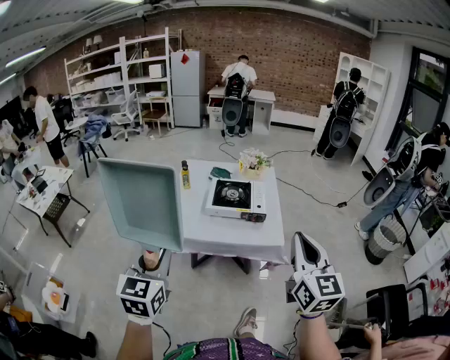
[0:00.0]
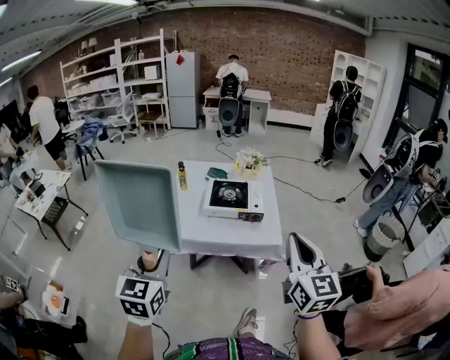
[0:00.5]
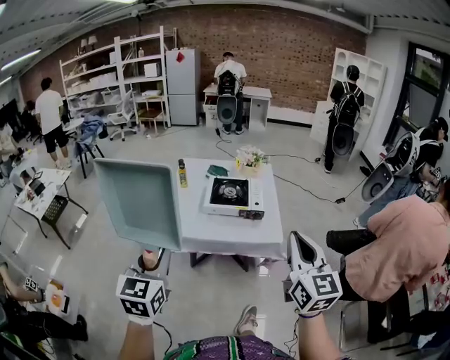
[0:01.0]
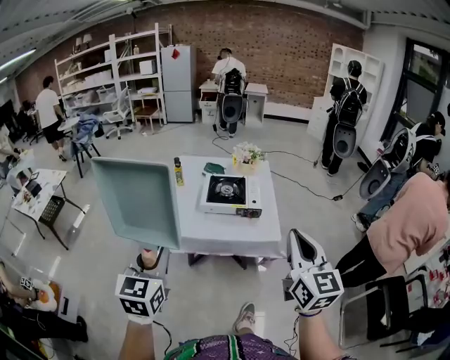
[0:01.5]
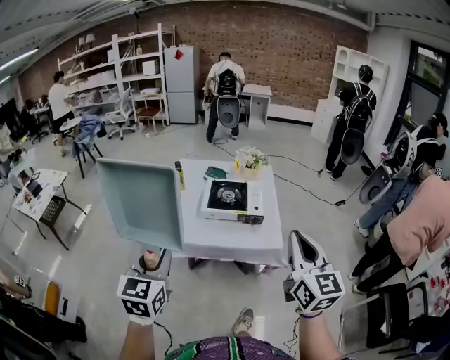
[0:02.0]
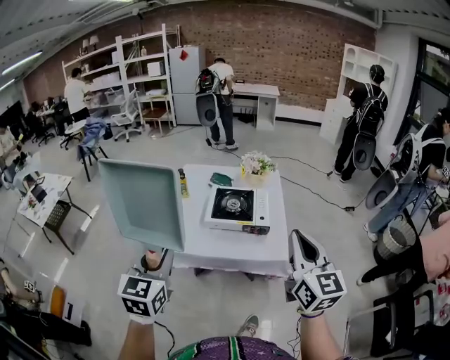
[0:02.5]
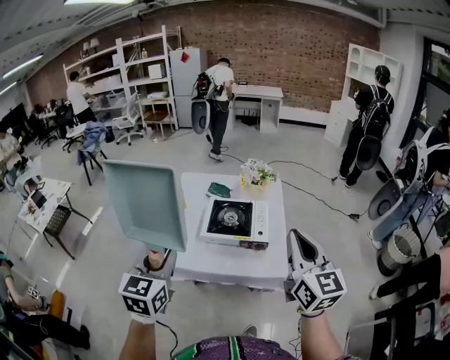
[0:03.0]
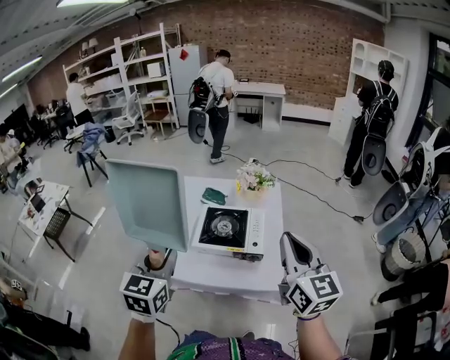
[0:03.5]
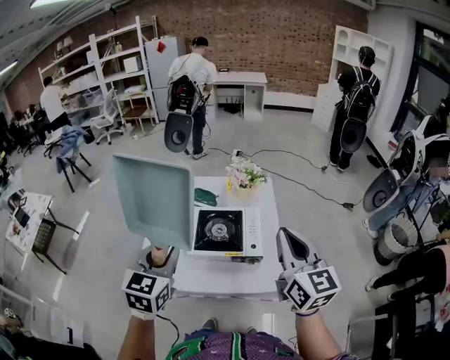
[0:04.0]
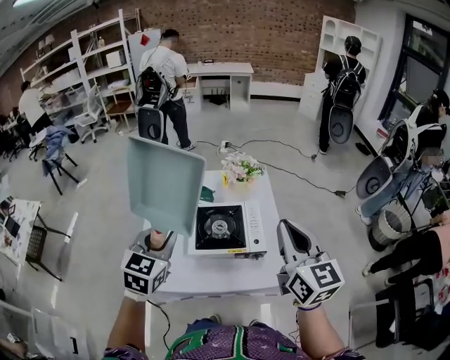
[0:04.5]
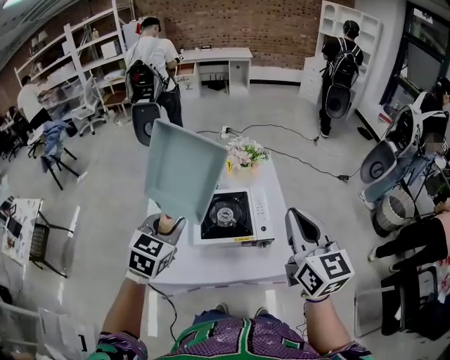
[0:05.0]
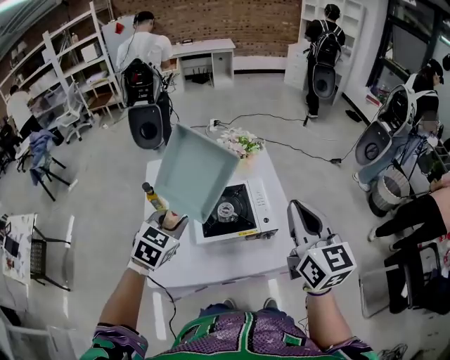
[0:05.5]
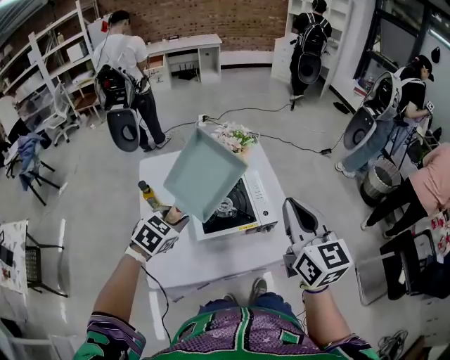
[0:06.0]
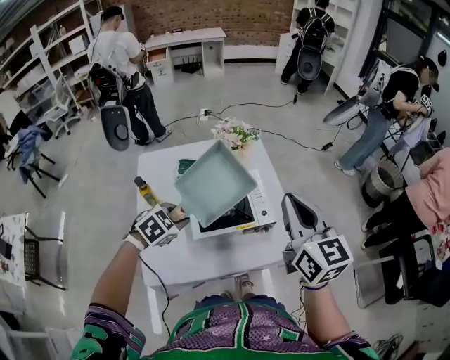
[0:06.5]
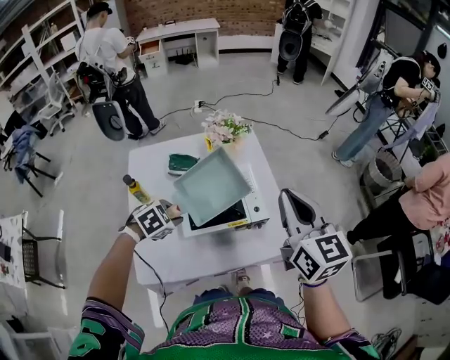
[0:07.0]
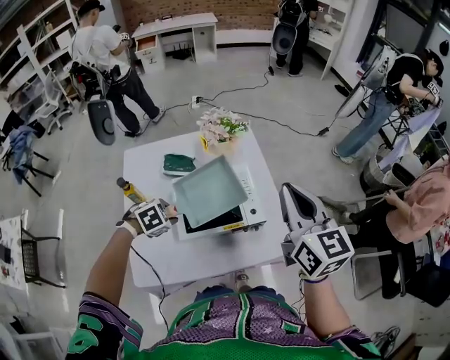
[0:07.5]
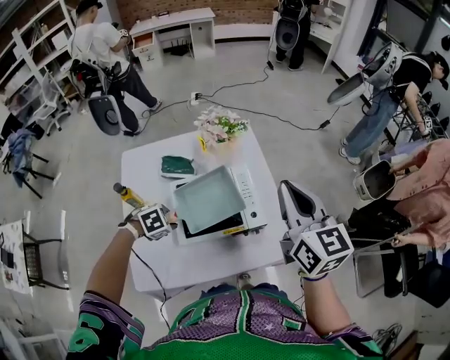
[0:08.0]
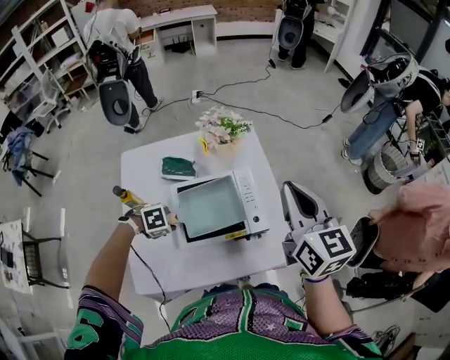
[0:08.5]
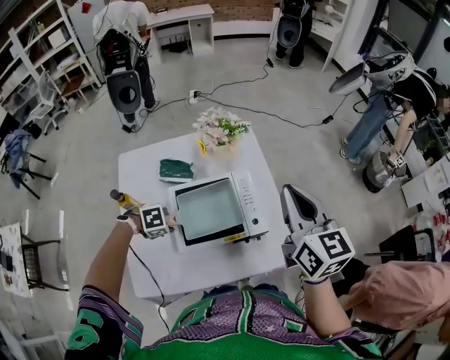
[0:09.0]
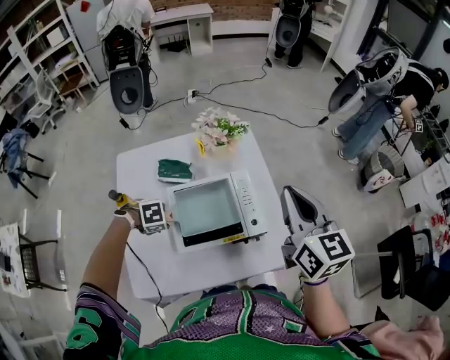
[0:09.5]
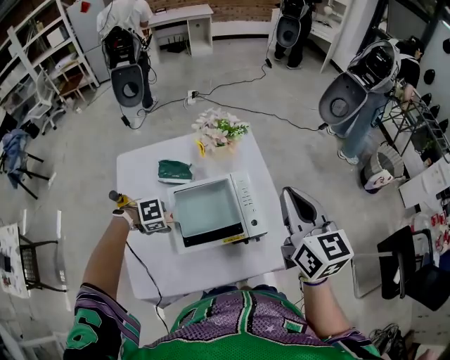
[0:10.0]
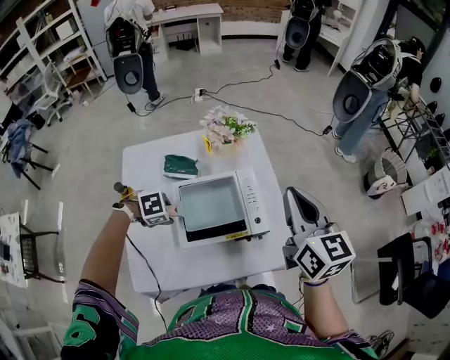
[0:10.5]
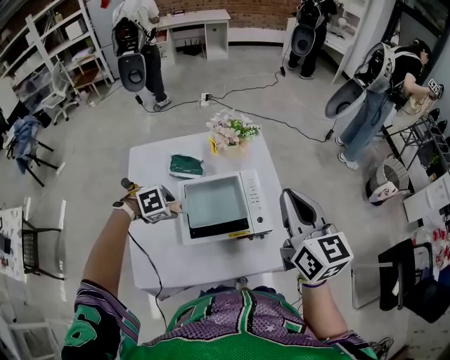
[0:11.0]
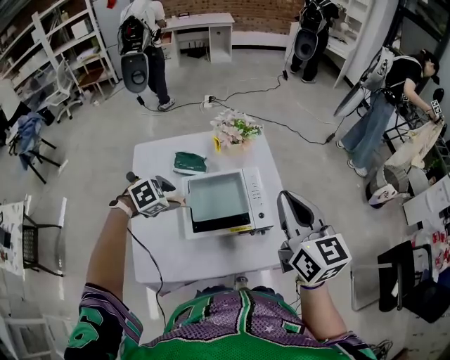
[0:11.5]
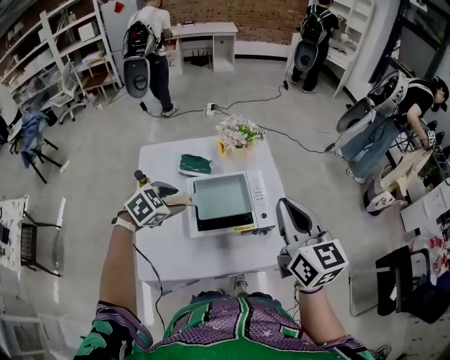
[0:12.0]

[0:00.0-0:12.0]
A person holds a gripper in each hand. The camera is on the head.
0:00.0 to 0:02.0: The left gripper shifts by some 5 cm.
0:02.0 to 0:04.0: Both grippers travel together forward, roughly 30 cm.
0:04.0 to 0:06.0: The left gripper goes about 15 cm downward, and swivels roughly 50 degrees; the right gripper moves about 10 cm.
0:06.0 to 0:08.0: The left gripper shifts roughly 15 cm downward, and angles its fingers downward, by roughly 30 degrees. Meanwhile the right gripper changes place by roughly 10 cm.
0:08.0 to 0:10.0: The left gripper opens its fingers.
0:10.0 to 0:12.0: The right gripper moves some 10 cm, while the left gripper heads upward, covering about 15 cm, and turns by some 40 degrees.

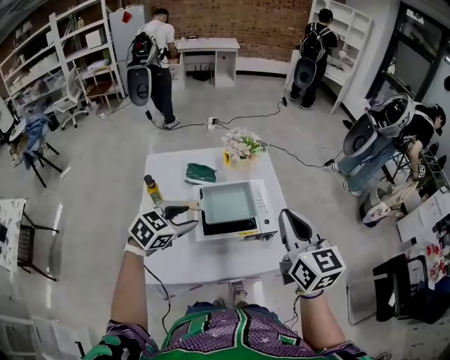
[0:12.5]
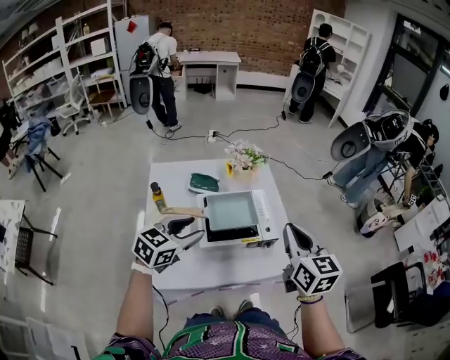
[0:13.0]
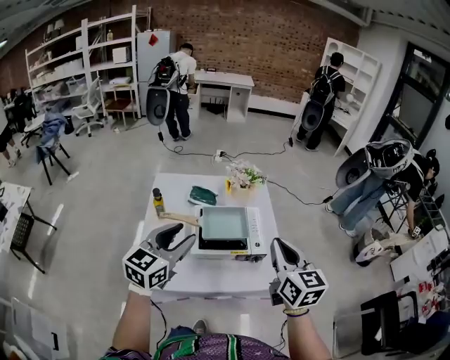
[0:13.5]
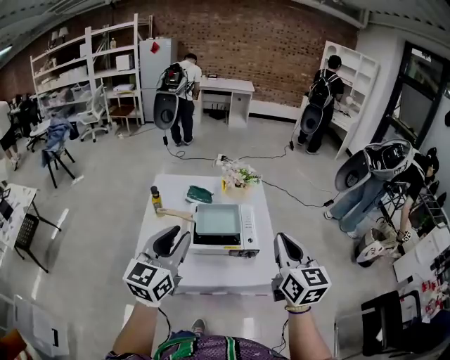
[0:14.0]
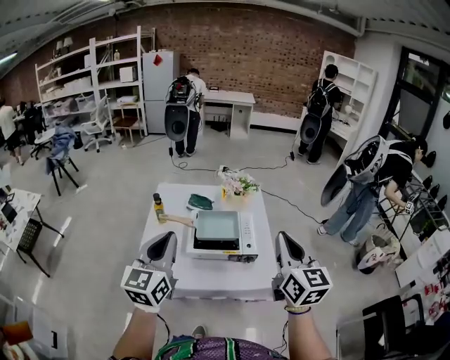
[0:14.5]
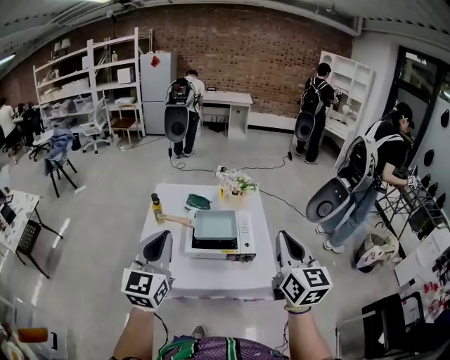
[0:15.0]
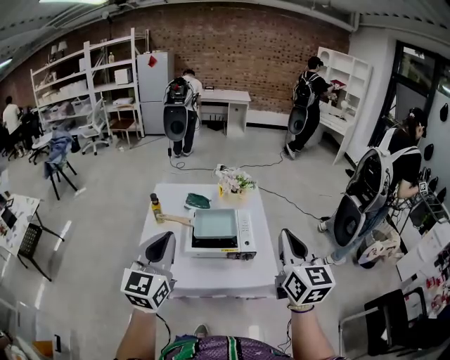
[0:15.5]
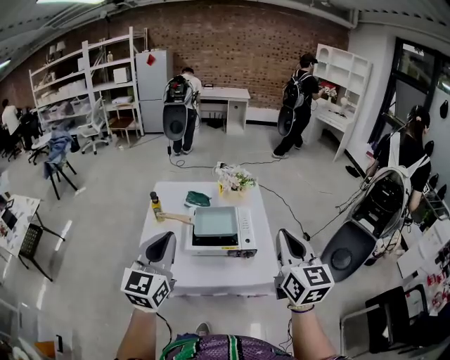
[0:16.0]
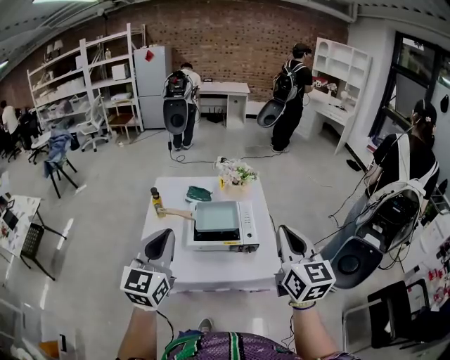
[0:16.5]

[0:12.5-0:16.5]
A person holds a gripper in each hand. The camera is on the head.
0:12.5 to 0:14.5: The right gripper goes roughly 15 cm to the right, backward and upward; the left gripper moves upward and backward, some 25 cm, points its fingers about 40 degrees further upward, and closes up.
0:14.5 to 0:16.5: The grippers stay close to where they were, moving slightly.

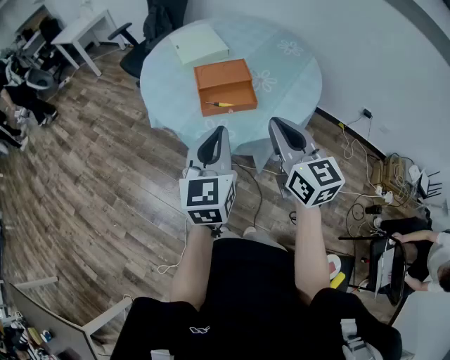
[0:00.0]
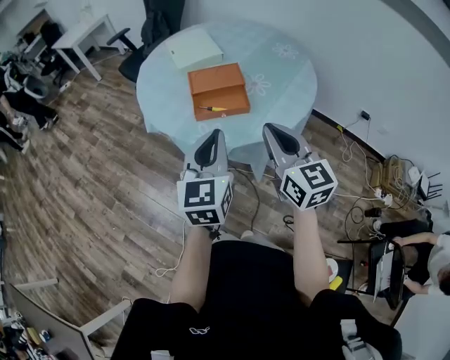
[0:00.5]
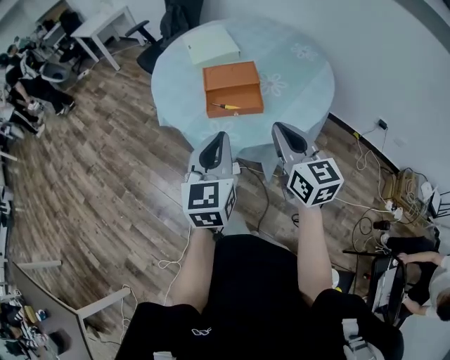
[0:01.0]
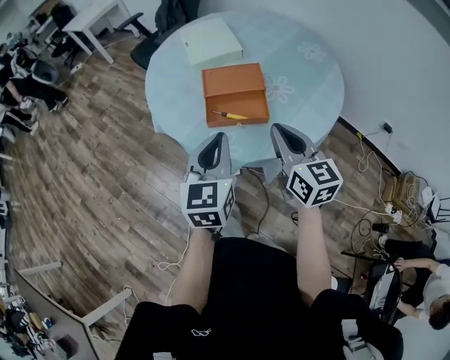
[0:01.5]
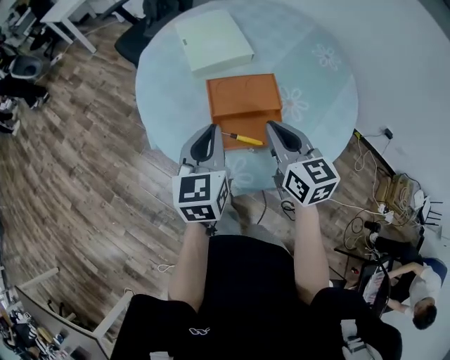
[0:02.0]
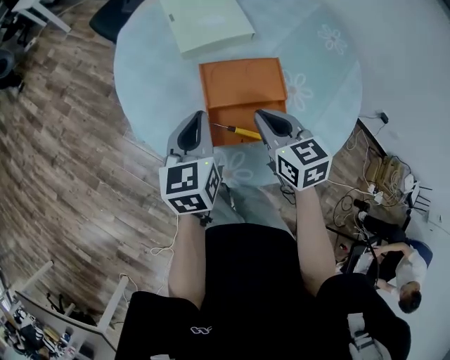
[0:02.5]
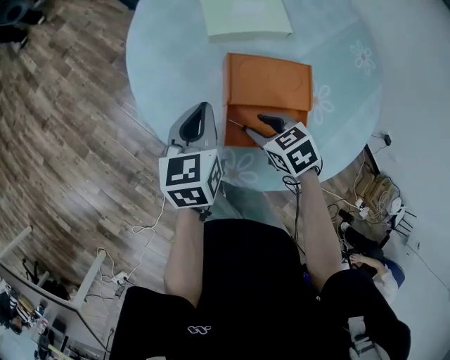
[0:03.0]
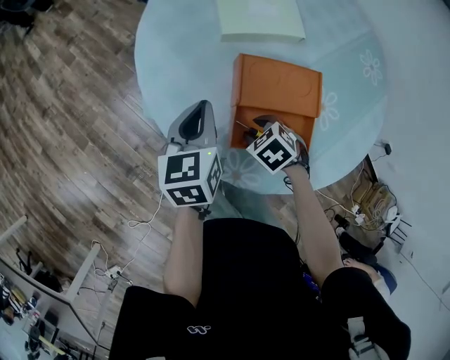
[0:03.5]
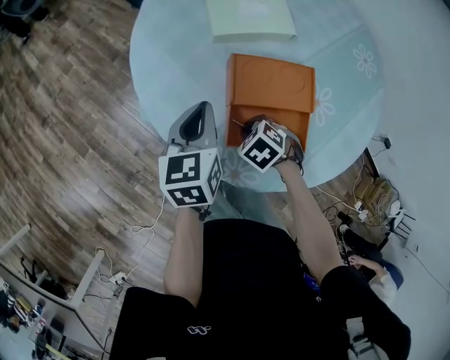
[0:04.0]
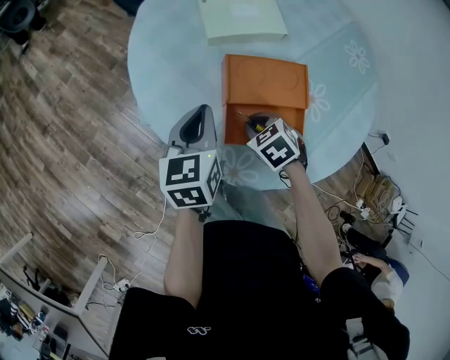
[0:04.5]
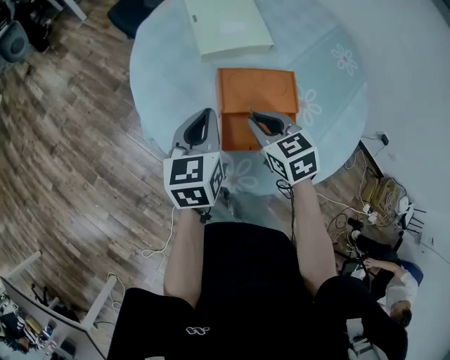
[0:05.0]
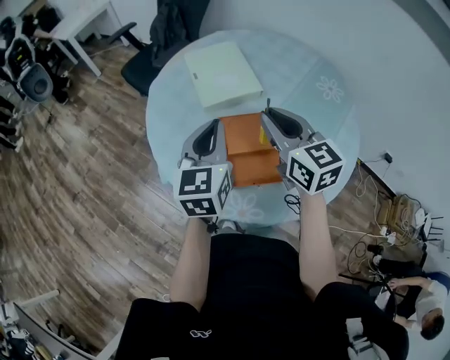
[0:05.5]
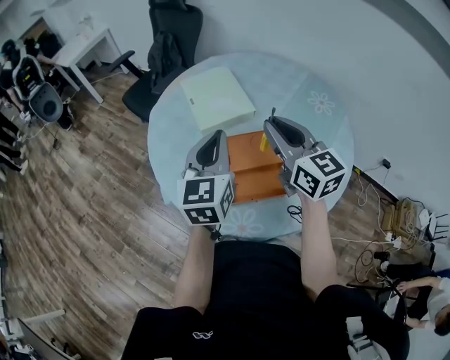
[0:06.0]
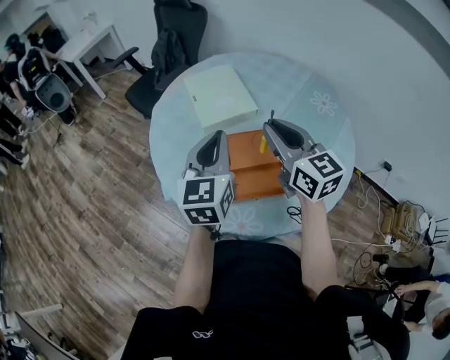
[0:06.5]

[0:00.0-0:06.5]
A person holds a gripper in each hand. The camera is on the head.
0:00.0 to 0:02.0: Both grippers travel together forward, approximately 25 cm.
0:02.0 to 0:04.5: The right gripper shifts about 20 cm downward, angles its fingers downward, by some 50 degrees, and opens and closes again. The left gripper shifts by roughly 15 cm.
0:04.5 to 0:06.5: The left gripper shifts roughly 20 cm upward and to the right, and changes its angle by some 30 degrees. Meanwhile the right gripper travels upward by some 35 cm, and points its fingers roughly 60 degrees further upward.

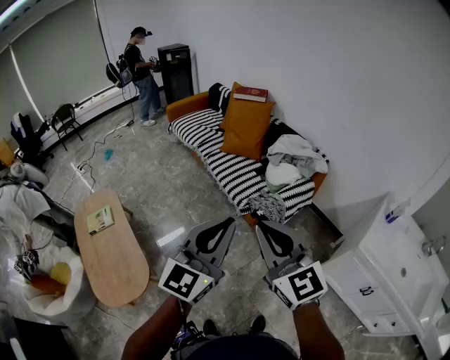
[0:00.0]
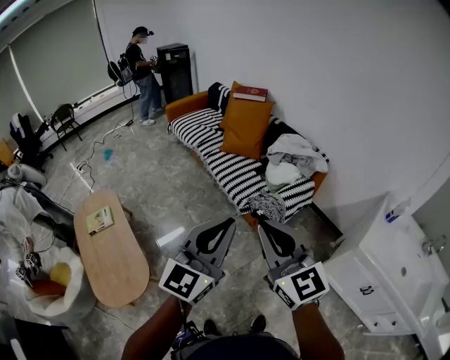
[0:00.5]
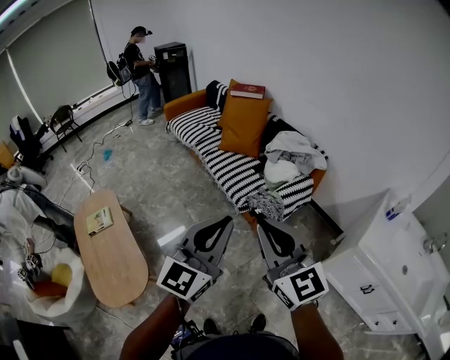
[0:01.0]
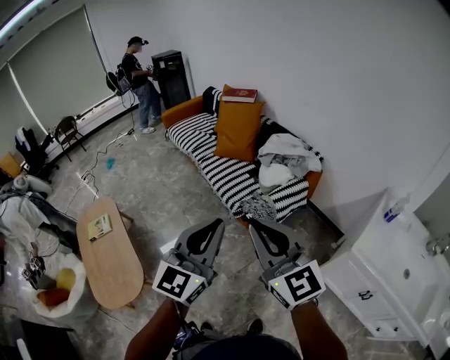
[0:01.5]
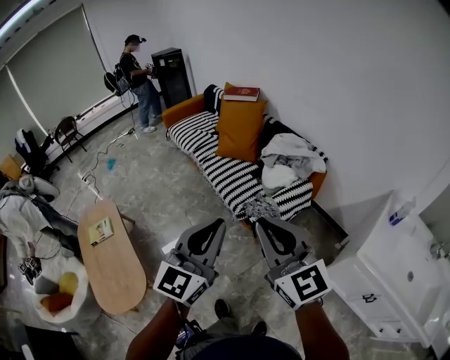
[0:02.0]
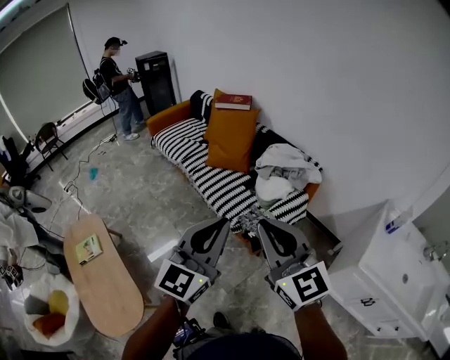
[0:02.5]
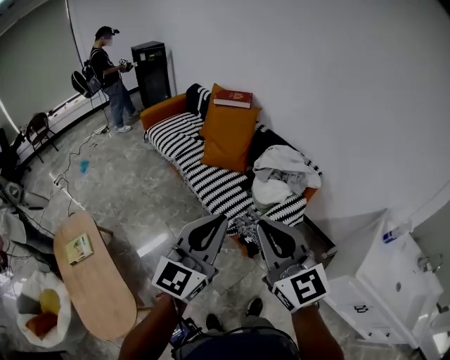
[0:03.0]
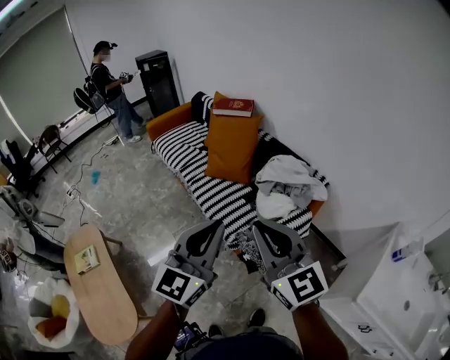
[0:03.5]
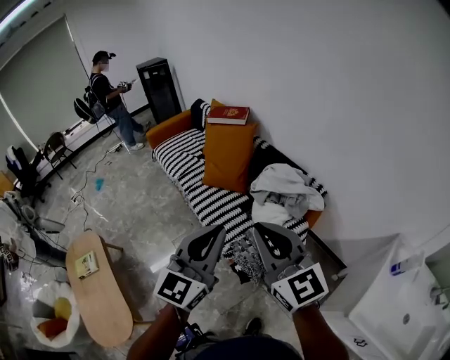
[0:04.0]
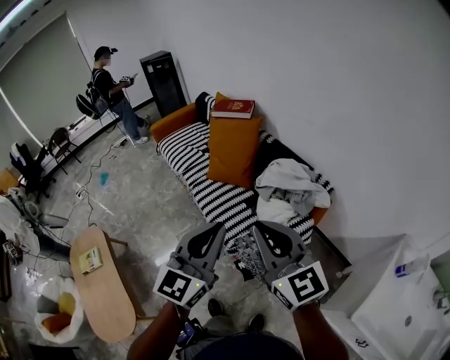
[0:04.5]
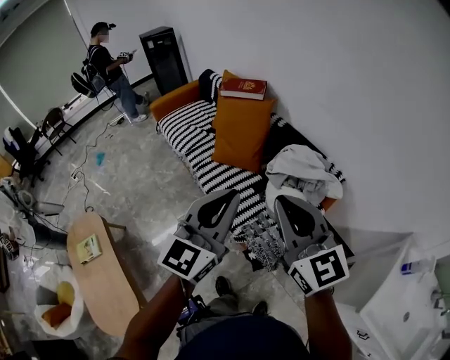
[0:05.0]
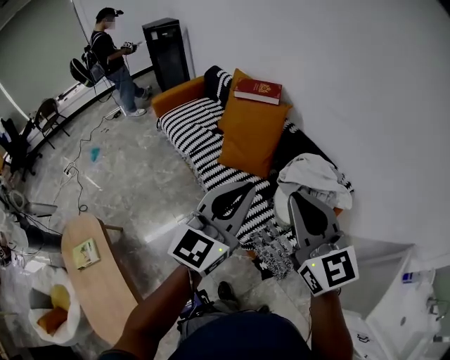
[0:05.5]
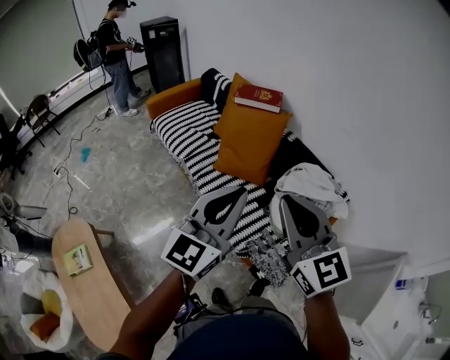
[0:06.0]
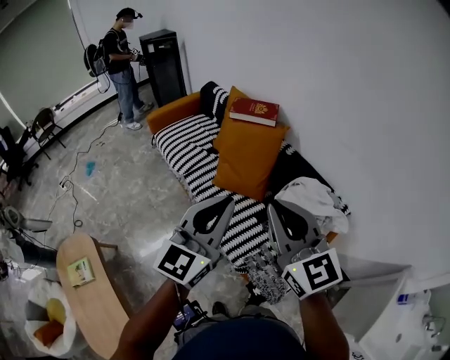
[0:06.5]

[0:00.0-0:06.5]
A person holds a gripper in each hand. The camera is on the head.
0:00.0 to 0:02.0: Both grippers move to the right and forward, some 10 cm.
0:02.0 to 0:04.5: Both grippers move forward, about 30 cm.
0:04.5 to 0:06.5: The grippers both shift forward and to the left by about 25 cm.
